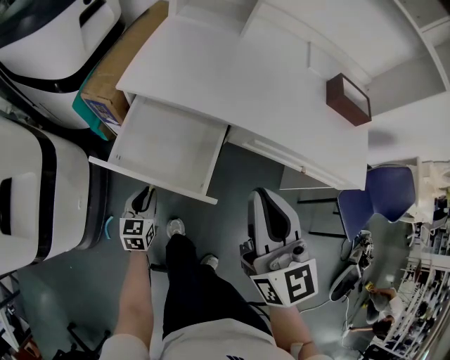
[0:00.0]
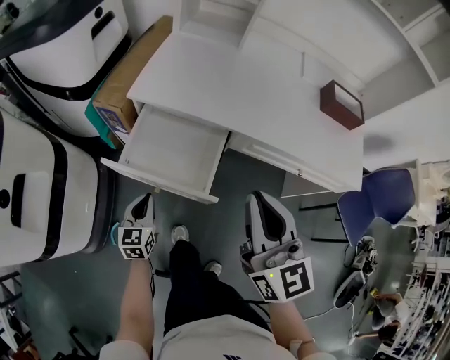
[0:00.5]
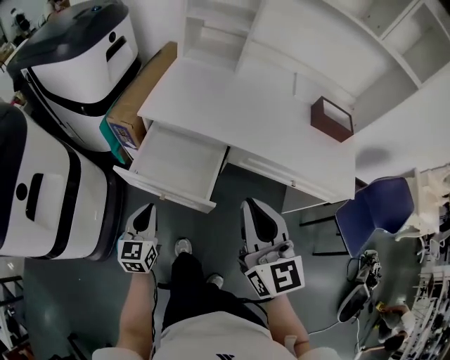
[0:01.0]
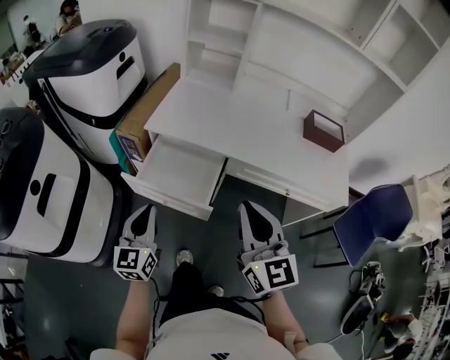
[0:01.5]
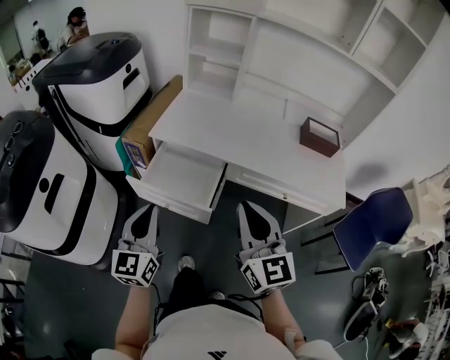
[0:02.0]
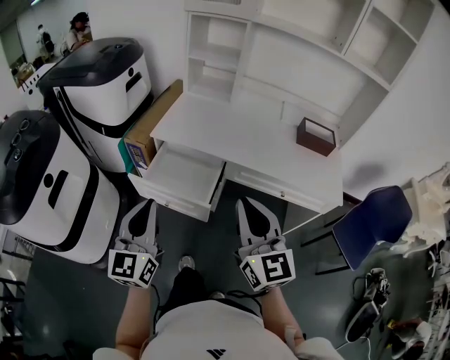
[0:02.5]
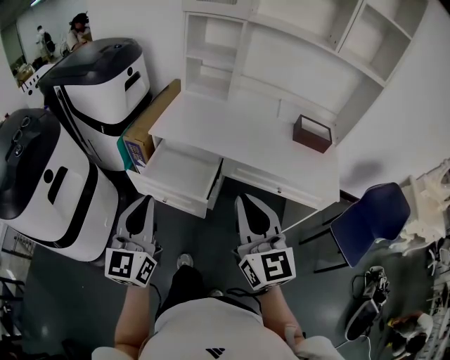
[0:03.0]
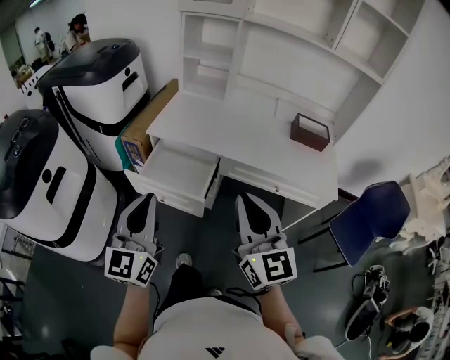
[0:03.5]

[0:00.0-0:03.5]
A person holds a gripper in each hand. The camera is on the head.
0:00.0 to 0:02.0: The right gripper heads backward and upward, covering about 10 cm; the left gripper moves upward, roughly 35 cm, and points its fingers some 30 degrees further upward.
0:02.0 to 0:03.5: The right gripper heads backward, covering about 5 cm; the left gripper travels upward and backward by approximately 10 cm.

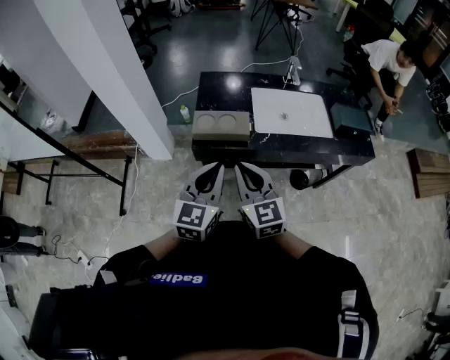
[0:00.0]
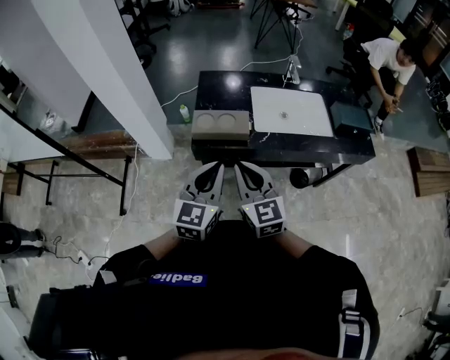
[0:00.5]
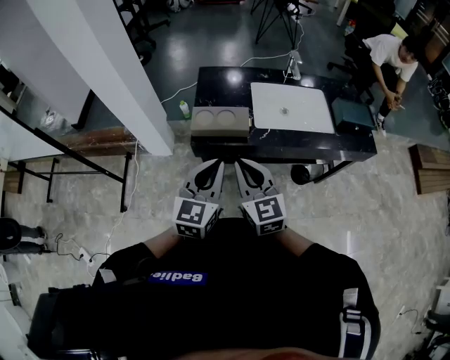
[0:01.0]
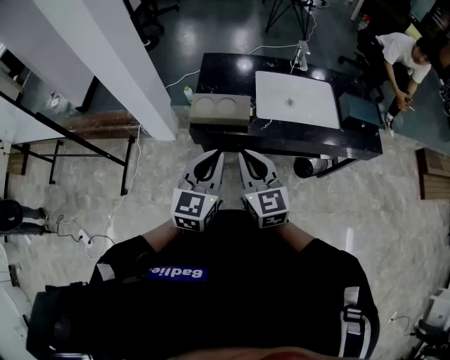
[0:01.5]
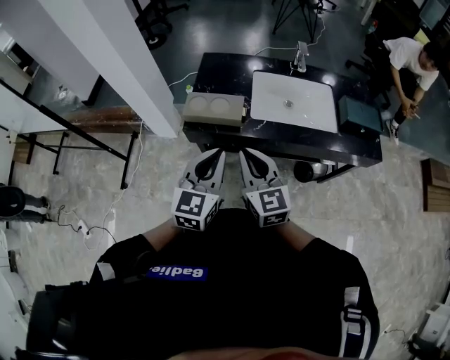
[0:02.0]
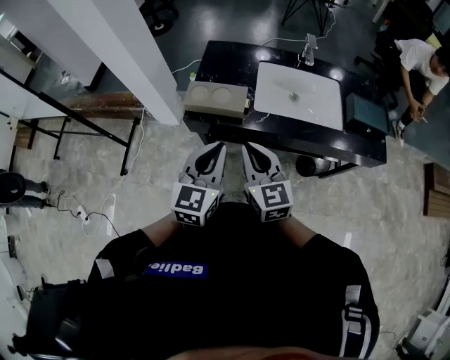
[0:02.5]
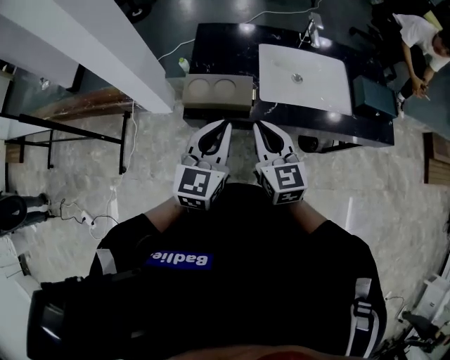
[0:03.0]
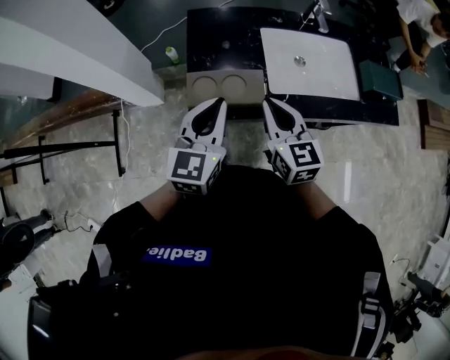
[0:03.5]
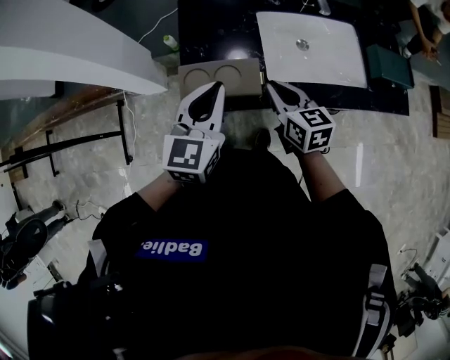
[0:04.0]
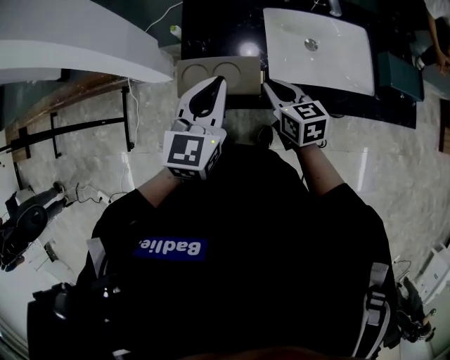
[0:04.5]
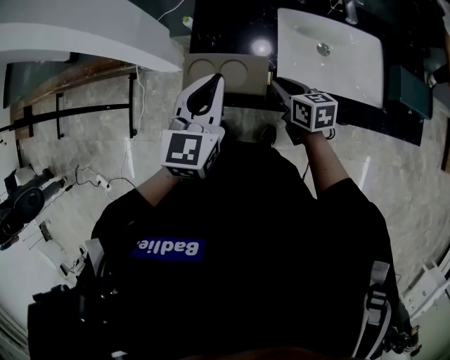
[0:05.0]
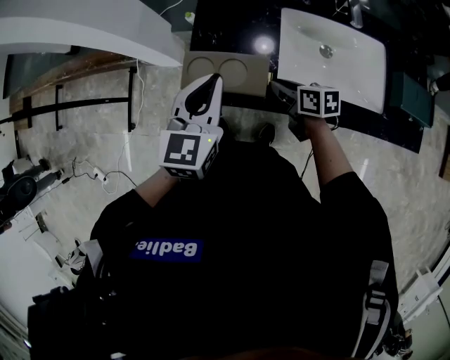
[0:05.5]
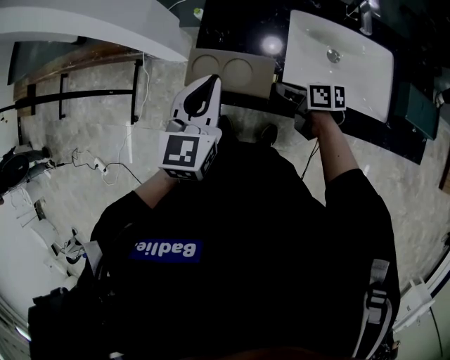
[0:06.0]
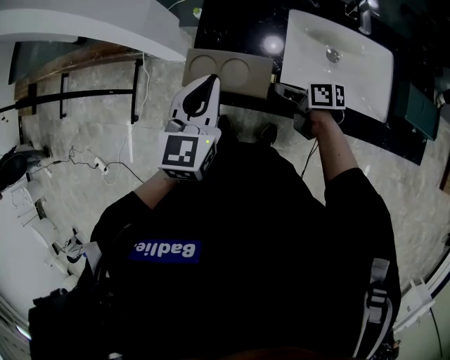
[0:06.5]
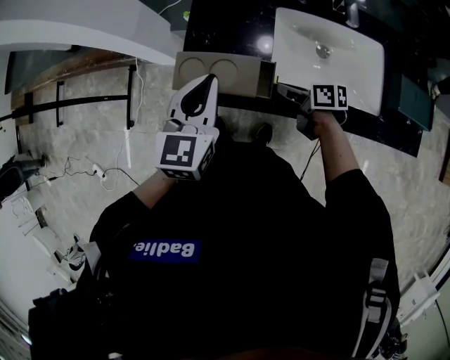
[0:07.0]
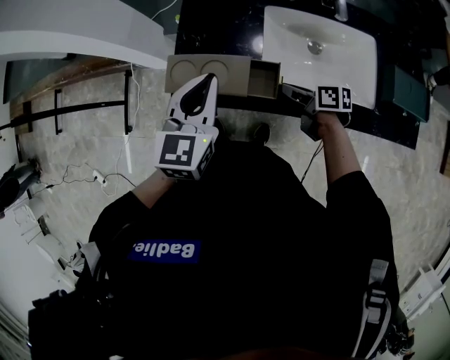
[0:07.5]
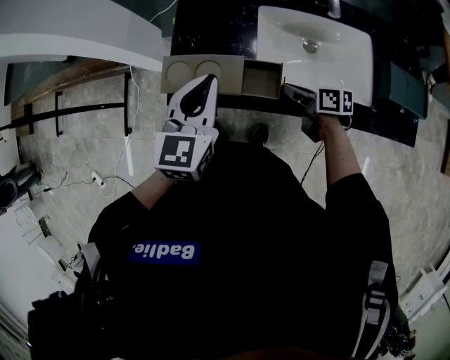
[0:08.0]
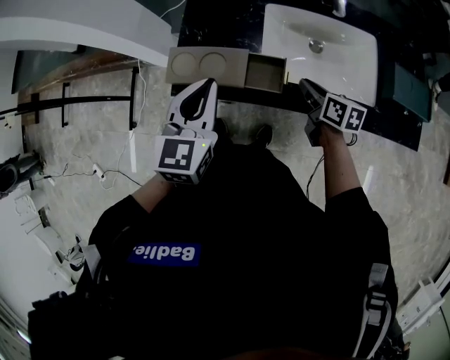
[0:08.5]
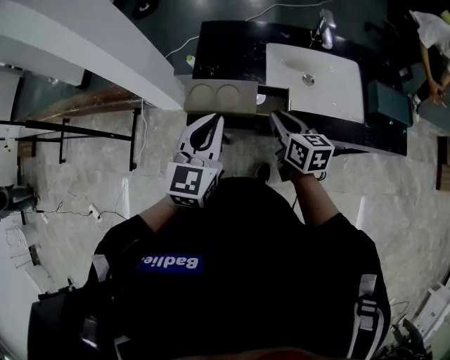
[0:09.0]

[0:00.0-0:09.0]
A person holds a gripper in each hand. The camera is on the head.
0:00.0 to 0:02.0: The two grippers go about 10 cm to the right.
0:02.0 to 0:04.5: The right gripper is displaced forward and downward by roughly 25 cm, and turns by approximately 30 degrees, while the left gripper moves forward, some 25 cm.
0:04.5 to 0:07.0: The right gripper travels downward by approximately 10 cm, and changes its angle by roughly 40 degrees.
0:07.0 to 0:09.0: The left gripper goes some 10 cm backward, while the right gripper heads upward and backward, covering about 15 cm, goes to the right and returns, about 10 cm each way, and swivels roughly 40 degrees.

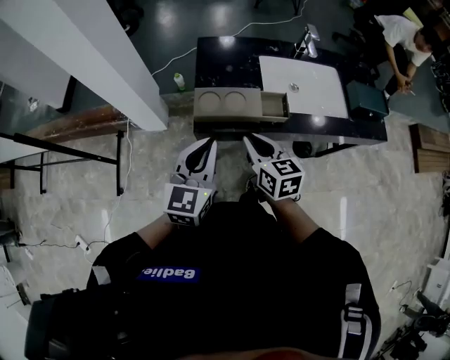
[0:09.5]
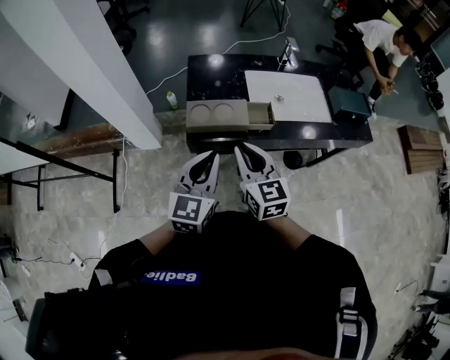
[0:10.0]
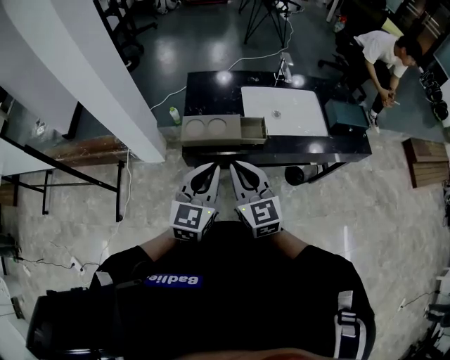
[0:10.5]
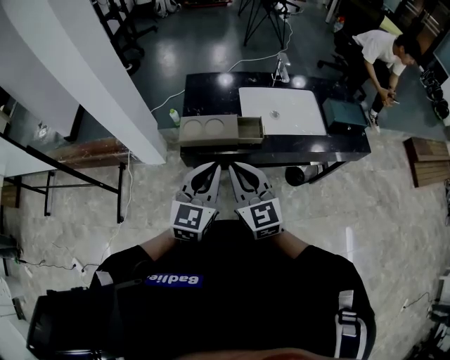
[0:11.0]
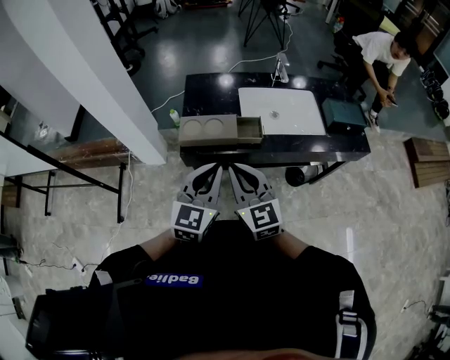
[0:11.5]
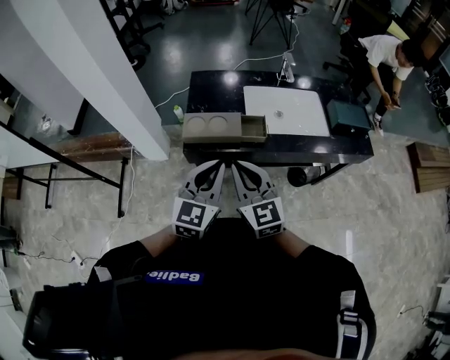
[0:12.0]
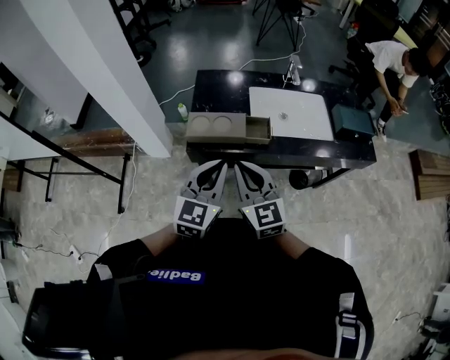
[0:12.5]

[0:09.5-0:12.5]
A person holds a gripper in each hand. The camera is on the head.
0:09.5 to 0:11.0: The right gripper shifts some 15 cm upward and backward, and swivels approximately 30 degrees. The left gripper goes roughly 10 cm to the right and backward.
0:11.0 to 0:12.5: The two grippers keep their place.

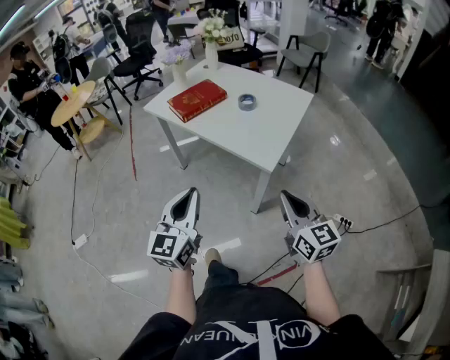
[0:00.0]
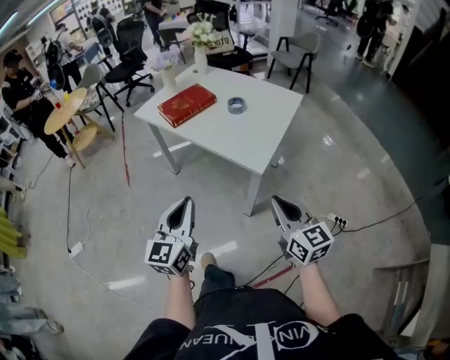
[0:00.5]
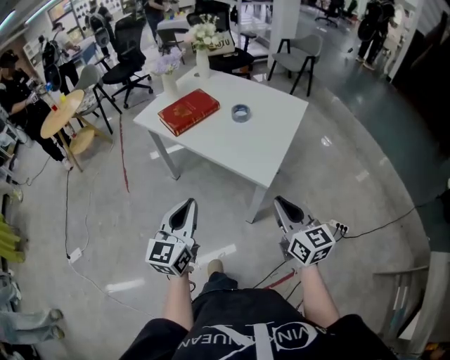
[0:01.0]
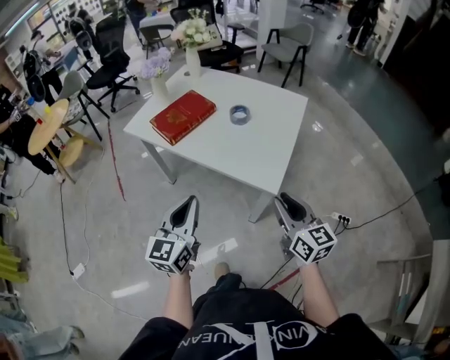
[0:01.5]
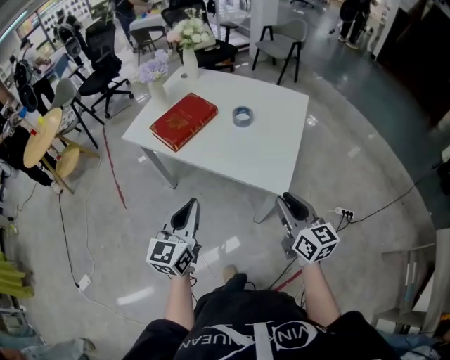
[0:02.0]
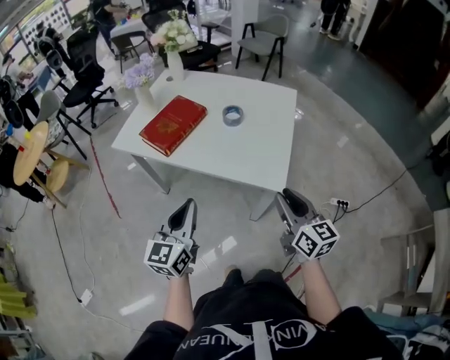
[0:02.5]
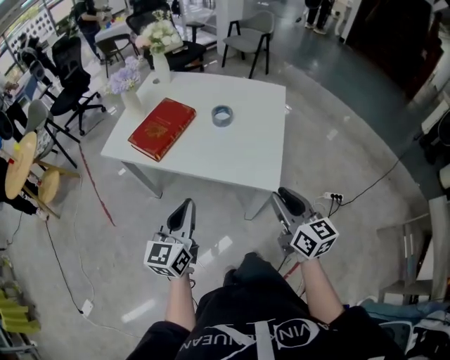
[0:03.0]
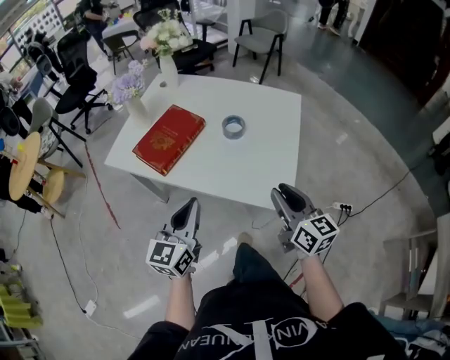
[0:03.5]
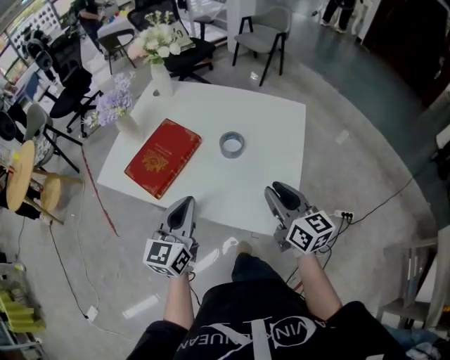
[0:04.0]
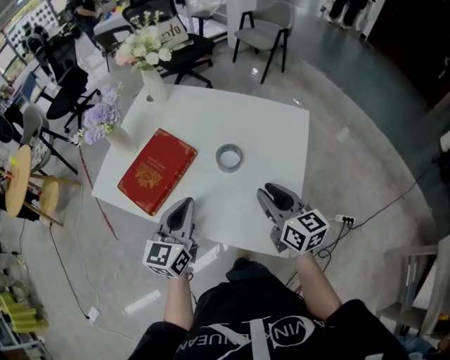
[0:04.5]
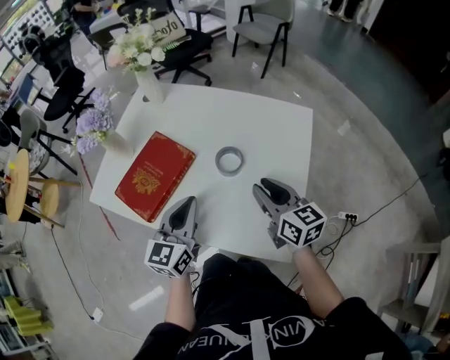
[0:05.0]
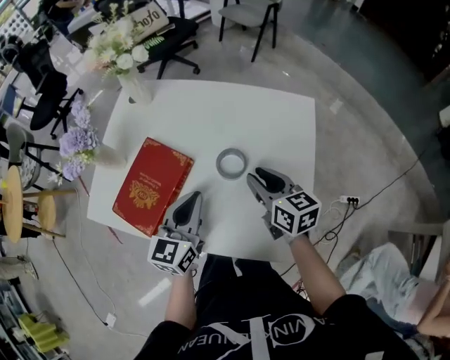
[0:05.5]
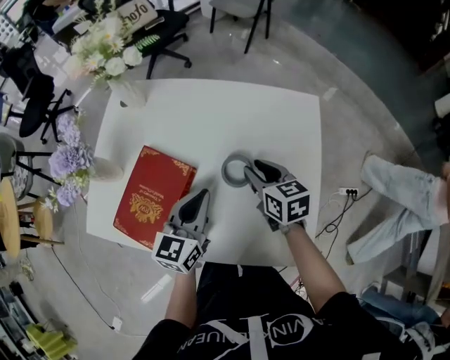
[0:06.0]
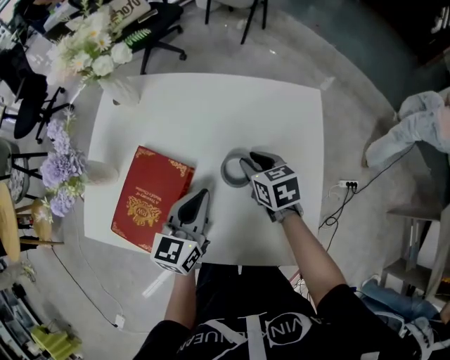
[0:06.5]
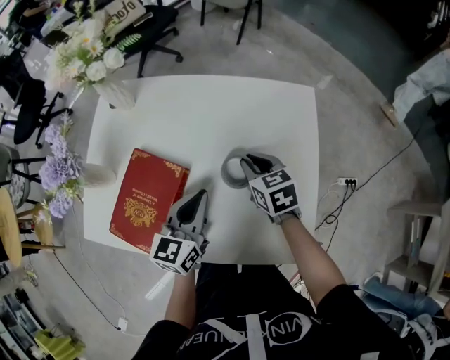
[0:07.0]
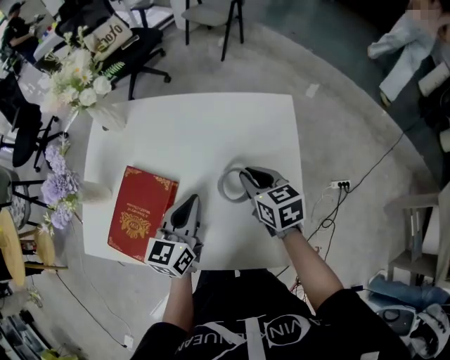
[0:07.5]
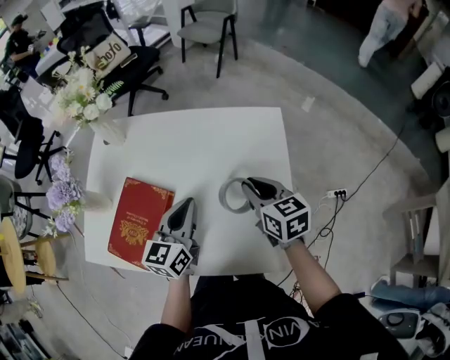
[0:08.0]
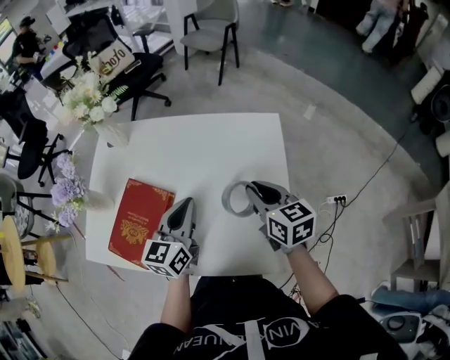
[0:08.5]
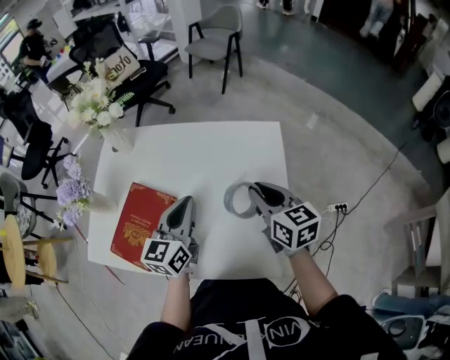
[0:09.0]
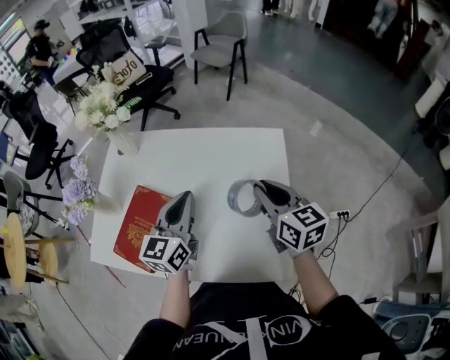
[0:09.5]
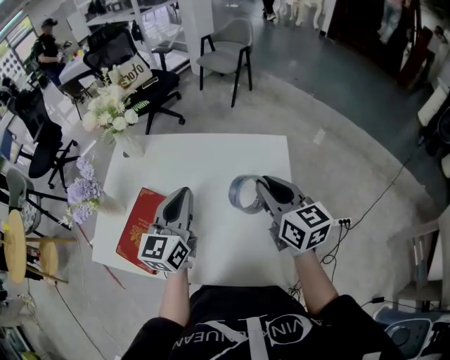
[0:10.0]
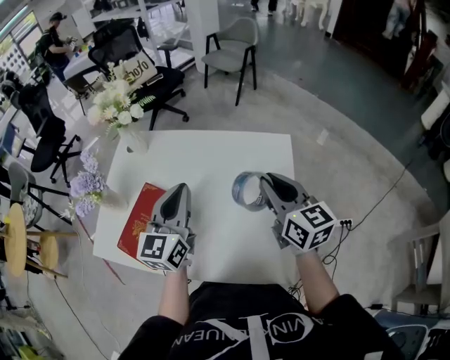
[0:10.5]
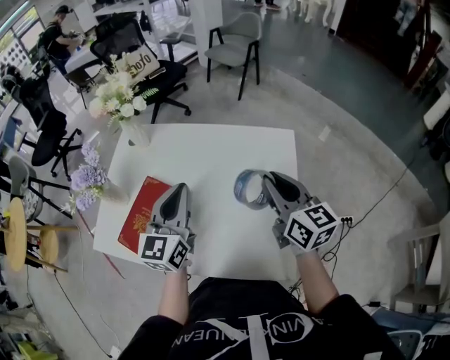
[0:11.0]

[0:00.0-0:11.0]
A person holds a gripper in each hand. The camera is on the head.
0:00.0 to 0:02.0: The grippers both shift forward by approximately 15 cm. The right gripper opens its fingers.
0:02.0 to 0:03.5: The two grippers go roughly 10 cm forward.
0:03.5 to 0:05.5: Both grippers travel together forward, about 25 cm.
0:05.5 to 0:07.5: The left gripper moves some 5 cm.
0:07.5 to 0:09.0: The two grippers go roughly 10 cm upward.
0:09.0 to 0:11.0: Both grippers move upward, about 5 cm.
